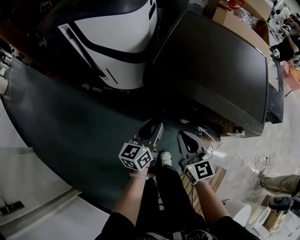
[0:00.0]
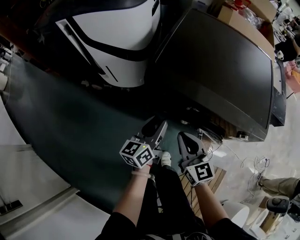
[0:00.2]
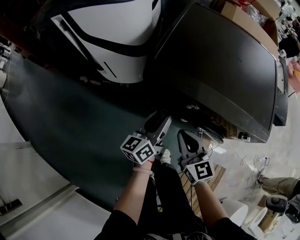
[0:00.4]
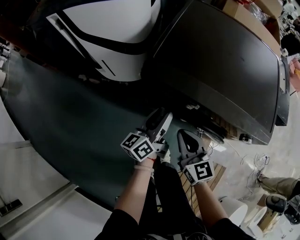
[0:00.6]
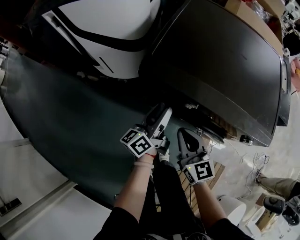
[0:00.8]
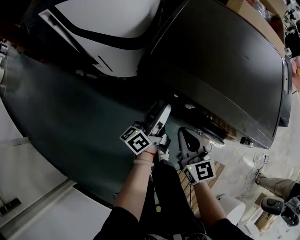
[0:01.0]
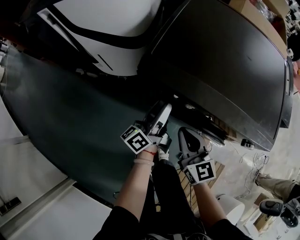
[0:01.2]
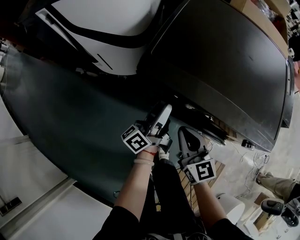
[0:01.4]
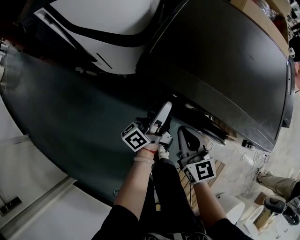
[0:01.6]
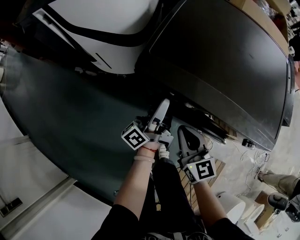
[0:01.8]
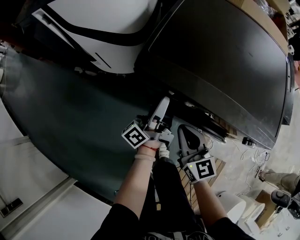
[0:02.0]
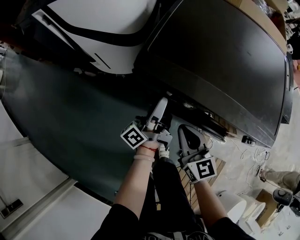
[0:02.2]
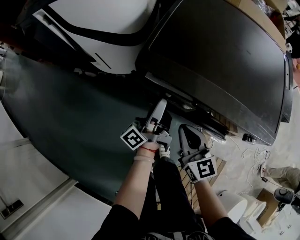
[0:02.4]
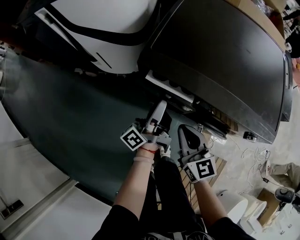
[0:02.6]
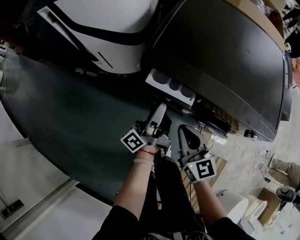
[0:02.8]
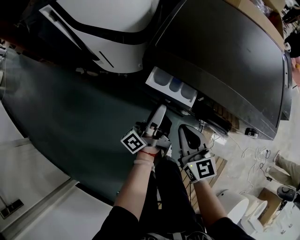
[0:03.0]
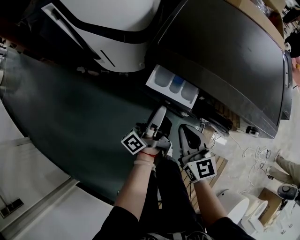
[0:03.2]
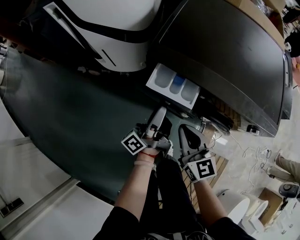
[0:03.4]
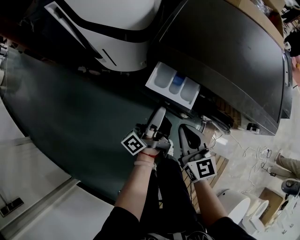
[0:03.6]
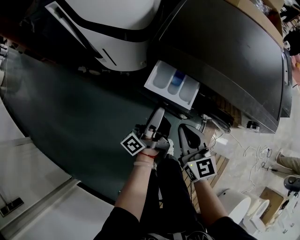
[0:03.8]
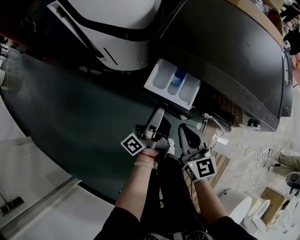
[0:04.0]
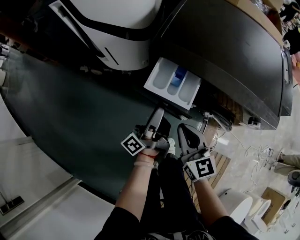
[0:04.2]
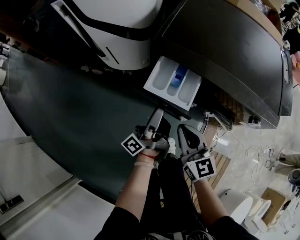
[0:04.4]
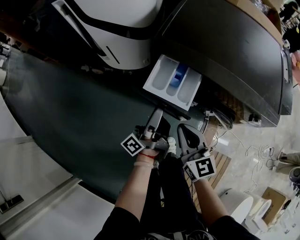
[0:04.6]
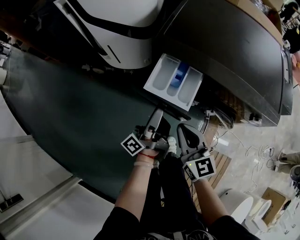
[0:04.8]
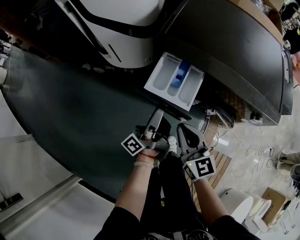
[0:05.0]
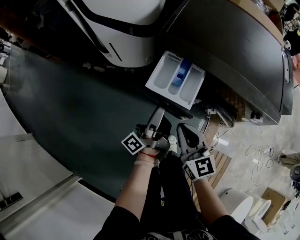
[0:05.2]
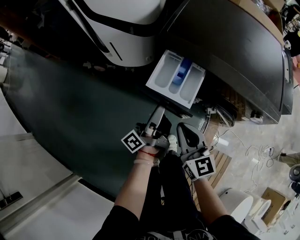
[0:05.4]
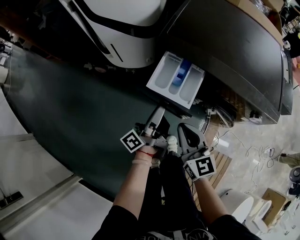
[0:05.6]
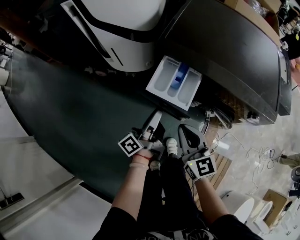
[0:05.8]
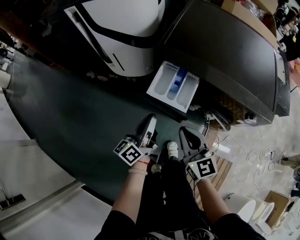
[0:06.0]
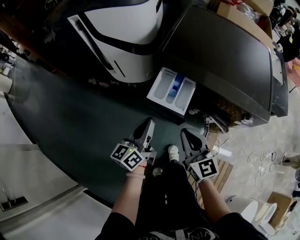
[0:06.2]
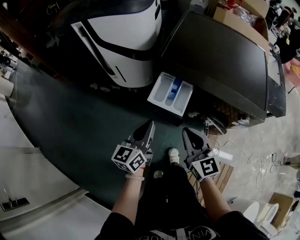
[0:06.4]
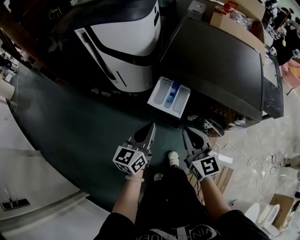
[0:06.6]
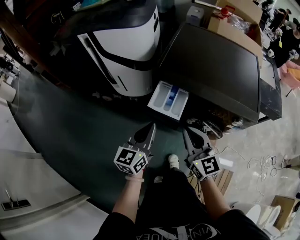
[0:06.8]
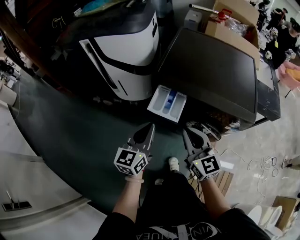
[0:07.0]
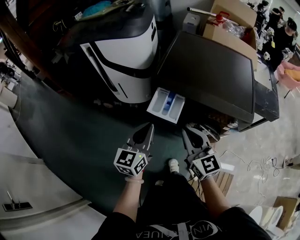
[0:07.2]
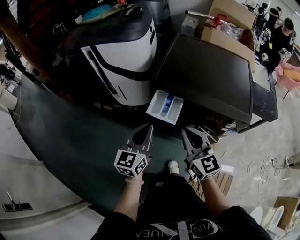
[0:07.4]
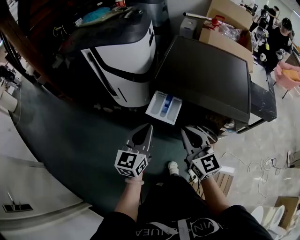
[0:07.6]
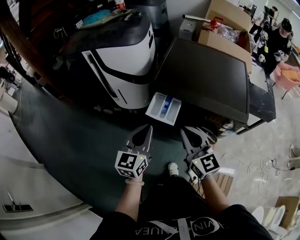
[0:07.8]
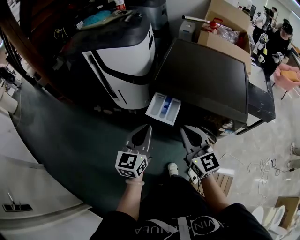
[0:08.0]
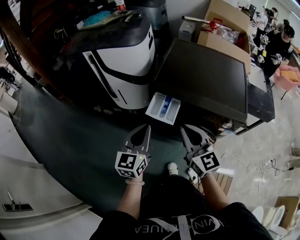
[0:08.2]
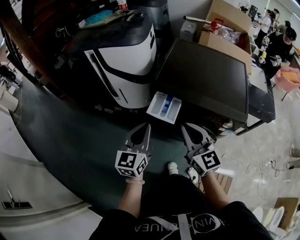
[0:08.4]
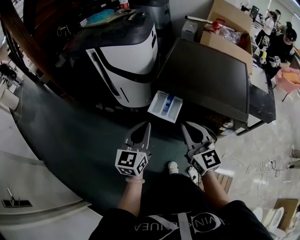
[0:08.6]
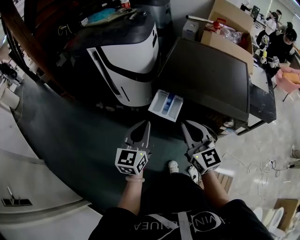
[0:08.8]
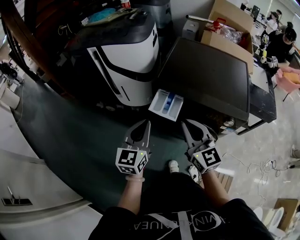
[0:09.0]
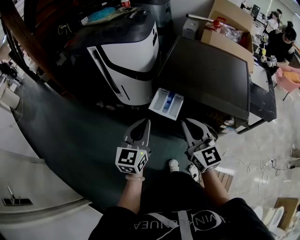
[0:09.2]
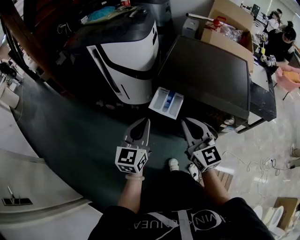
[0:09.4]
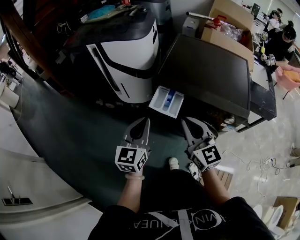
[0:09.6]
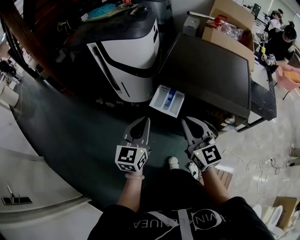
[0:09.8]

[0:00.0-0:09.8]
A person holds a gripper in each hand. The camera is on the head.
0:00.0 to 0:01.4: The right gripper travels downward and forward by about 10 cm; the left gripper moves forward, approximately 10 cm, and turns by roughly 40 degrees.
0:01.4 to 0:02.8: There are only small adjustments of the grippers.
0:02.8 to 0:04.2: The right gripper changes place by some 5 cm. Meanwhile the left gripper is displaced backward by approximately 5 cm.
0:04.2 to 0:05.6: The grippers stay close to where they were, moving slightly.
0:05.6 to 0:07.0: The grippers both shift upward by about 15 cm. The left gripper rotates around the line of its fingers by approximately 70 degrees, clockwise from behind, and closes.
0:07.0 to 0:08.4: Both grippers move upward, about 5 cm.
0:08.4 to 0:09.8: The grippers stay close to where they were, moving slightly.

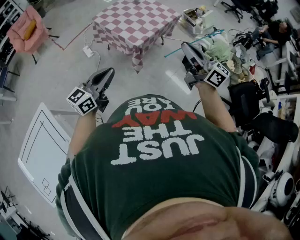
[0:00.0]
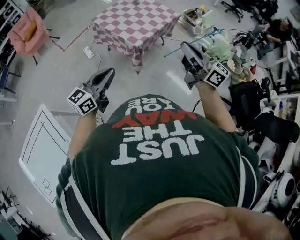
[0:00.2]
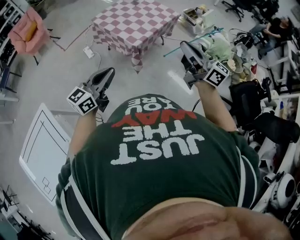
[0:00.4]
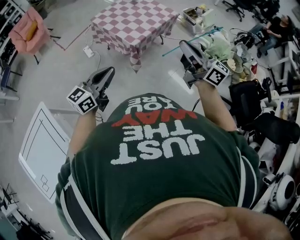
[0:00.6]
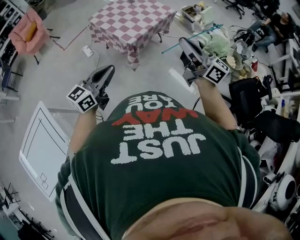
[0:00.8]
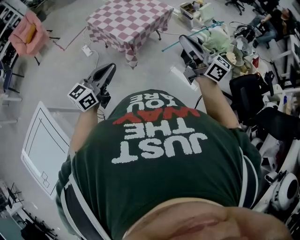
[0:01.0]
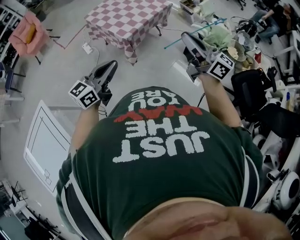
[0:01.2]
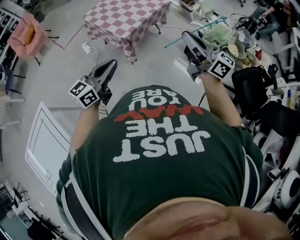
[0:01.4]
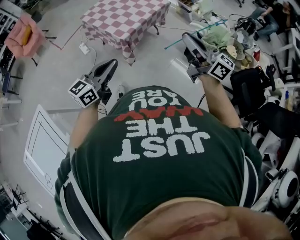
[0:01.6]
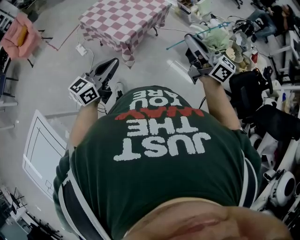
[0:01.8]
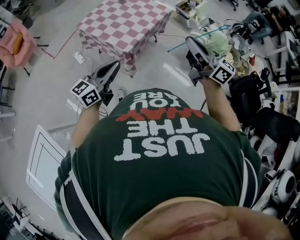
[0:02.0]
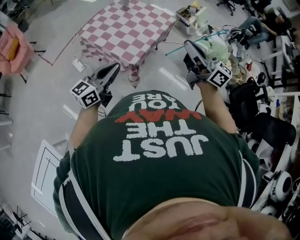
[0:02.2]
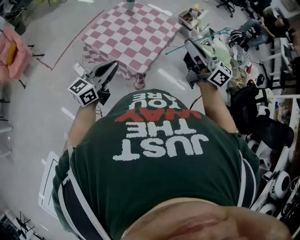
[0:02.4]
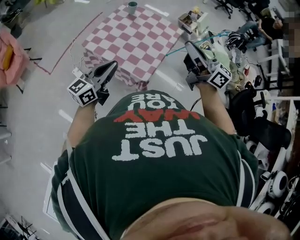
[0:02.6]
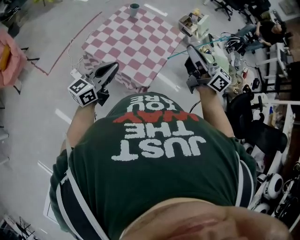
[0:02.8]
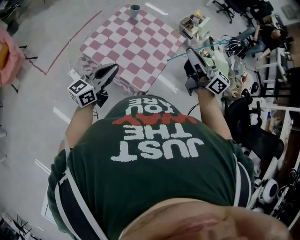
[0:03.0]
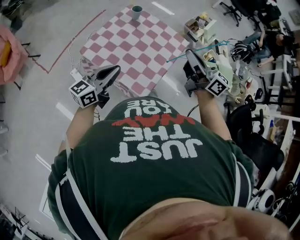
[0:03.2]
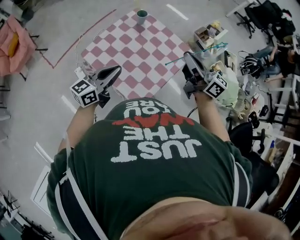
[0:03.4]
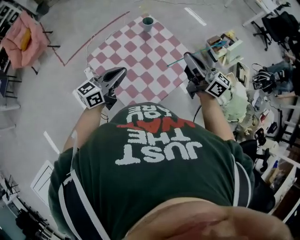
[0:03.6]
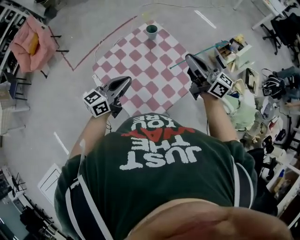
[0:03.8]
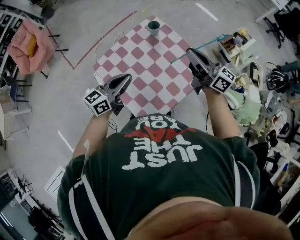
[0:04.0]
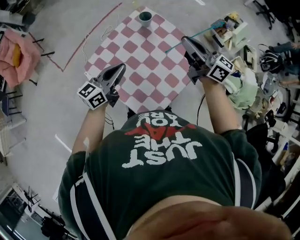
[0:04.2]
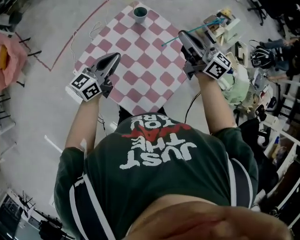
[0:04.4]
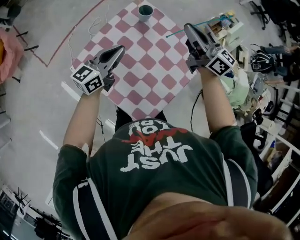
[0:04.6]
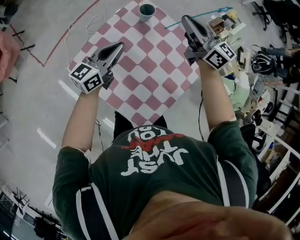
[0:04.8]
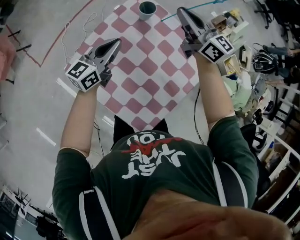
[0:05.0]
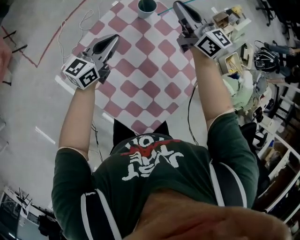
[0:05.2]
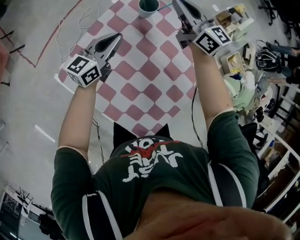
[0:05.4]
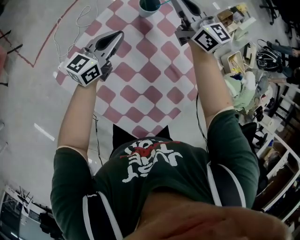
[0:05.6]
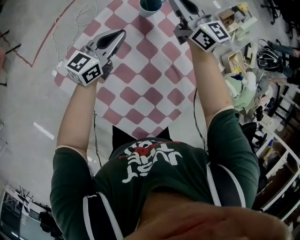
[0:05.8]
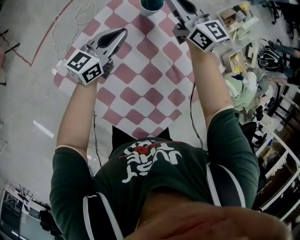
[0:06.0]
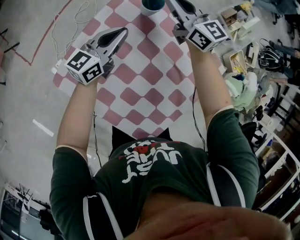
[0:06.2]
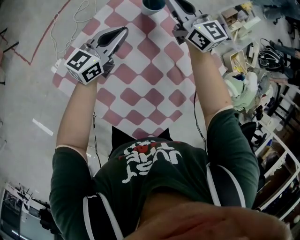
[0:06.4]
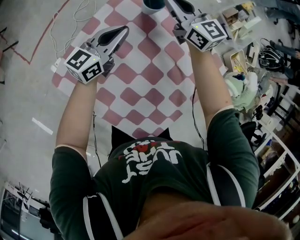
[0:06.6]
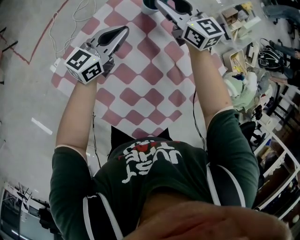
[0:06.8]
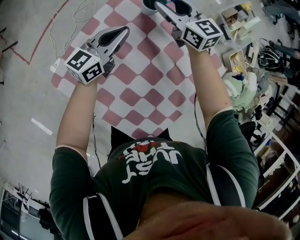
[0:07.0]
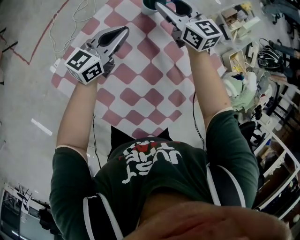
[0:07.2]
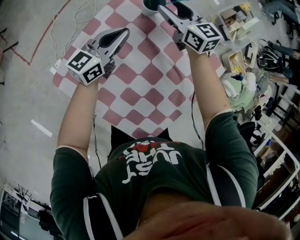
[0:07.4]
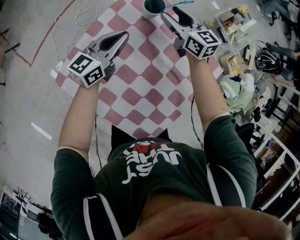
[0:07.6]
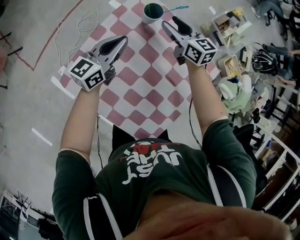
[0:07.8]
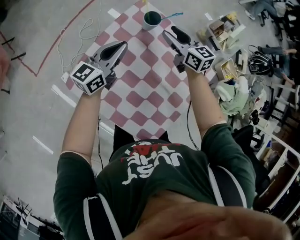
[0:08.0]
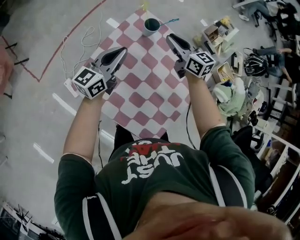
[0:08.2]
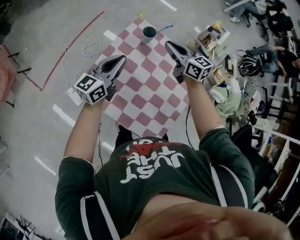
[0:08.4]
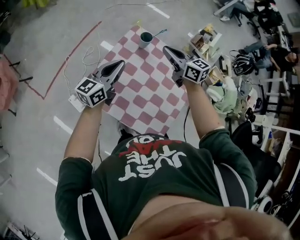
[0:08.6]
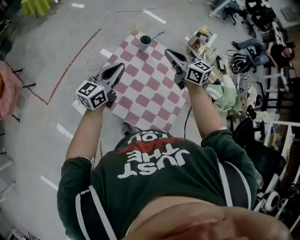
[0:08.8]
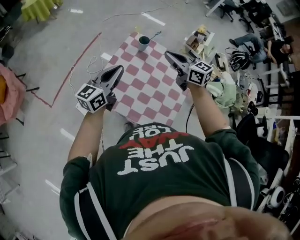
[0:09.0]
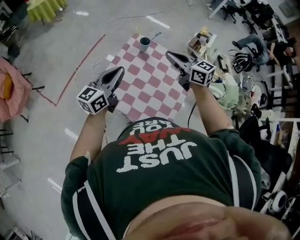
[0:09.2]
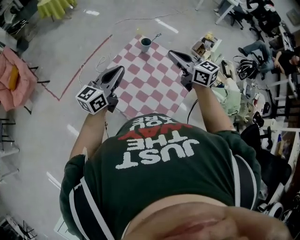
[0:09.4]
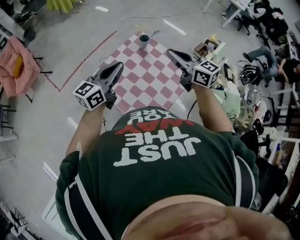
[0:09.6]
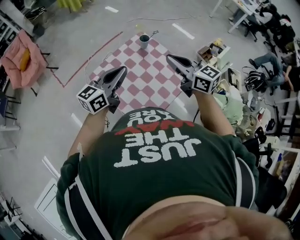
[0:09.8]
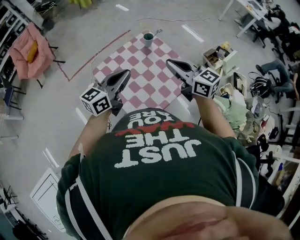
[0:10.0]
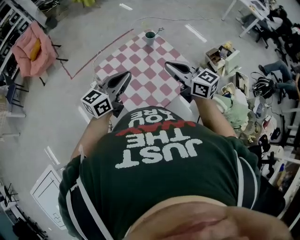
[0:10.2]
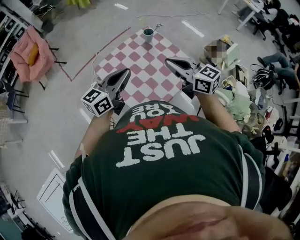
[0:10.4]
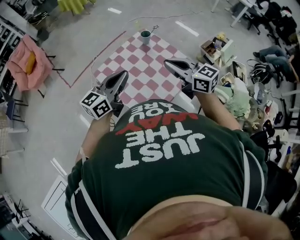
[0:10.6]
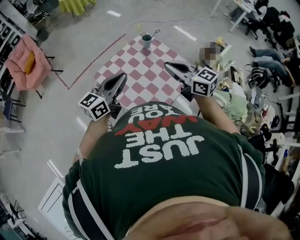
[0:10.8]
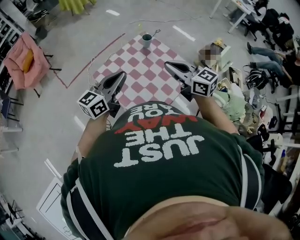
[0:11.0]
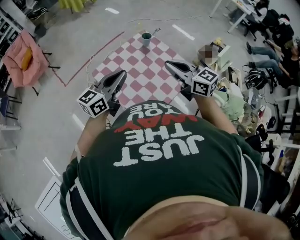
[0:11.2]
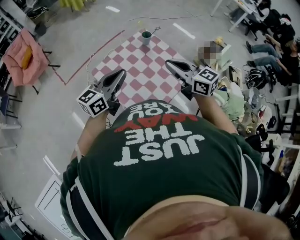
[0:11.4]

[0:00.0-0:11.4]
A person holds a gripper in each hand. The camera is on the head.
0:00.0 to 0:01.4: Both grippers travel together to the right, roughly 15 cm.
0:01.4 to 0:02.8: The two grippers travel together, forward and to the left, approximately 50 cm.
0:02.8 to 0:04.2: Both grippers travel together forward, roughly 30 cm.
0:04.2 to 0:05.6: Both grippers travel together forward and downward, some 30 cm. The right gripper rotates approximately 20 degrees.
0:05.6 to 0:07.2: The right gripper heads downward, covering about 10 cm, and opens.
0:07.2 to 0:08.6: The right gripper heads upward and backward, covering about 25 cm, and closes. The left gripper goes some 25 cm upward, backward and to the left.
0:08.6 to 0:10.0: The right gripper moves backward, upward and to the right, about 30 cm, and changes its angle by roughly 20 degrees; the left gripper travels backward, to the right and upward by about 30 cm.
0:10.0 to 0:11.4: The left gripper goes approximately 5 cm to the left.

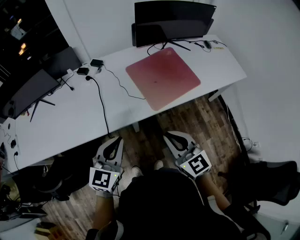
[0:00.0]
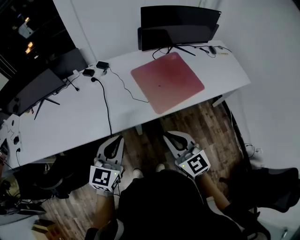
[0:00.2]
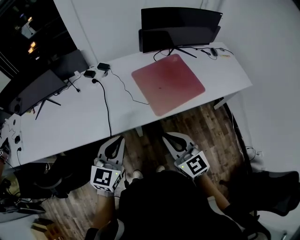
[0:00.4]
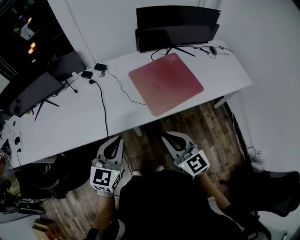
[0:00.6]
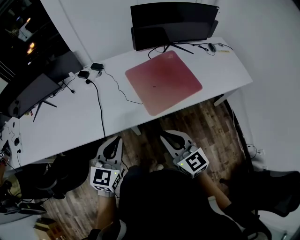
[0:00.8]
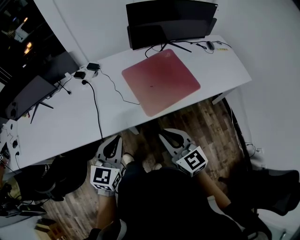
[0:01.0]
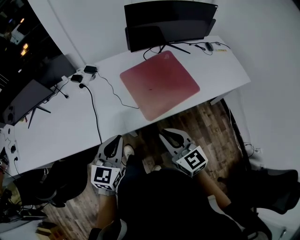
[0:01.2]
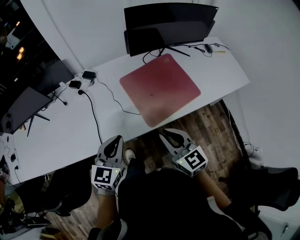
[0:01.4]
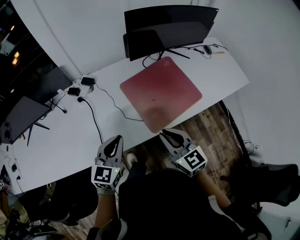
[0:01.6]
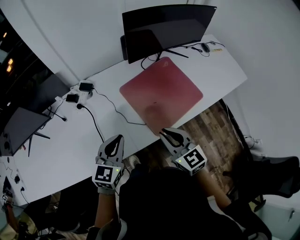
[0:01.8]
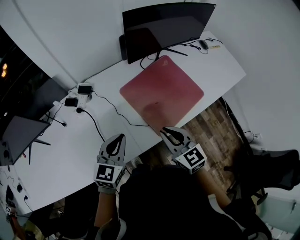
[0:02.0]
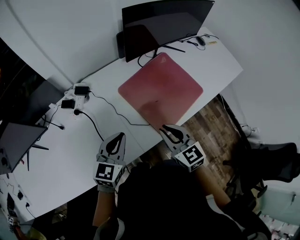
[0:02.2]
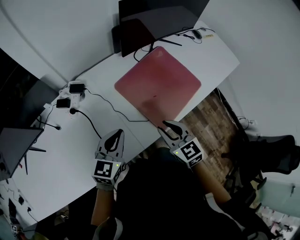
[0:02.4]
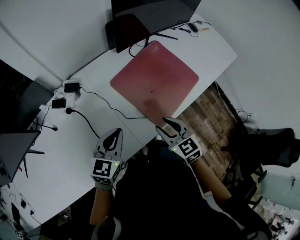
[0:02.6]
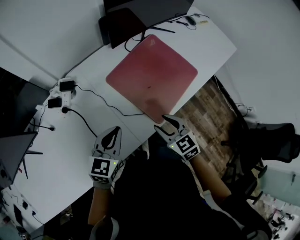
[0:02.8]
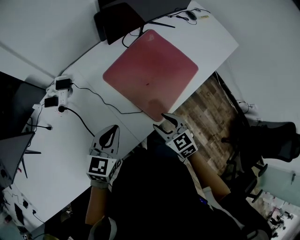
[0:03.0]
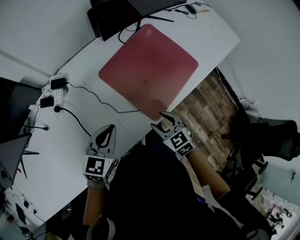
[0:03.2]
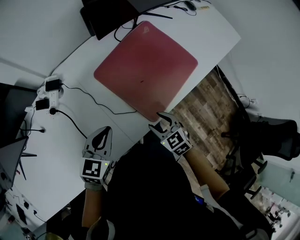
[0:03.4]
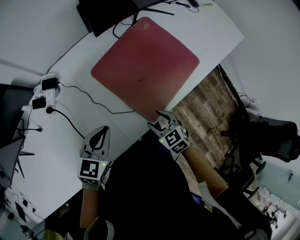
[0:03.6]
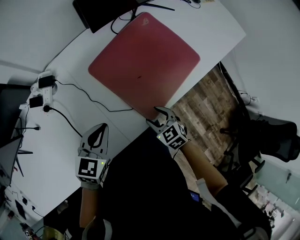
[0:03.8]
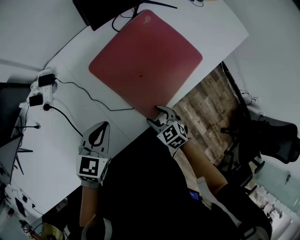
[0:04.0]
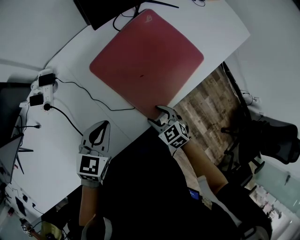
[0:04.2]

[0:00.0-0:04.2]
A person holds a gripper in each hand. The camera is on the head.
0:00.0 to 0:01.4: The right gripper is displaced forward by about 10 cm. Meanwhile the left gripper shifts approximately 10 cm forward and to the right.
0:01.4 to 0:02.8: The right gripper travels downward, forward and to the left by about 15 cm, rotates about 30 degrees, and opens up; the left gripper travels forward, downward and to the left by about 15 cm, and swivels about 20 degrees.
0:02.8 to 0:04.2: The left gripper goes approximately 5 cm downward. The right gripper moves downward, some 15 cm.
